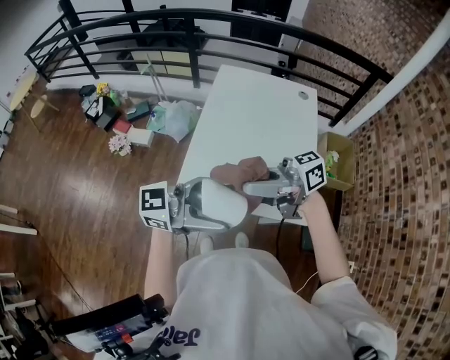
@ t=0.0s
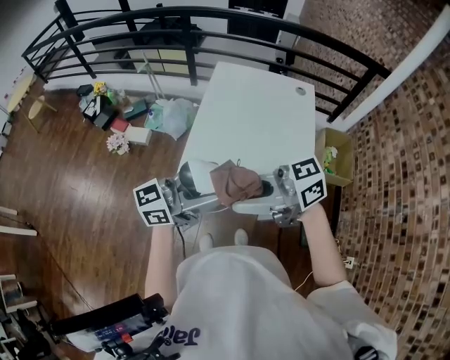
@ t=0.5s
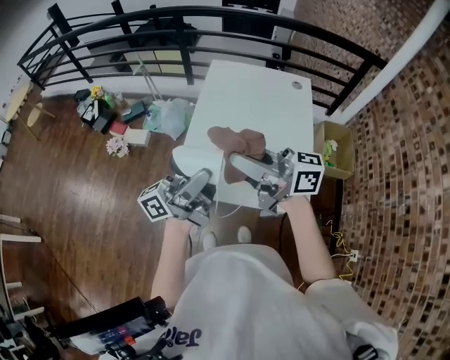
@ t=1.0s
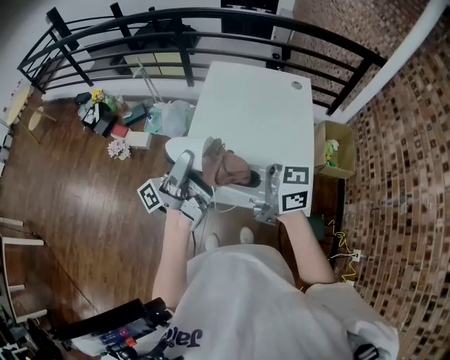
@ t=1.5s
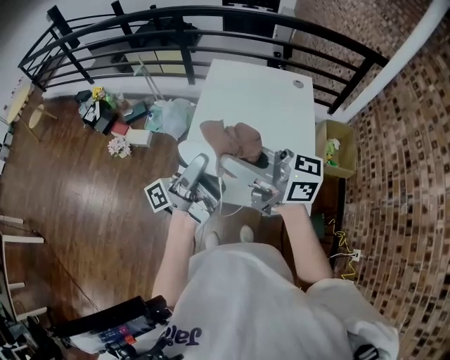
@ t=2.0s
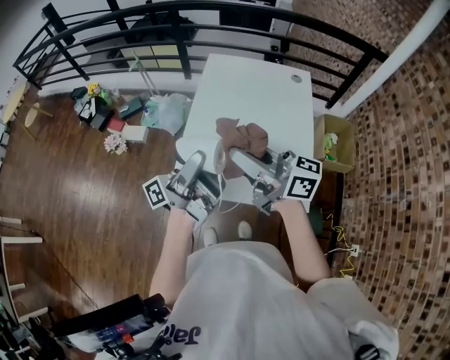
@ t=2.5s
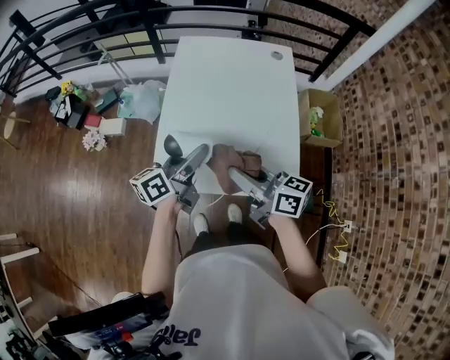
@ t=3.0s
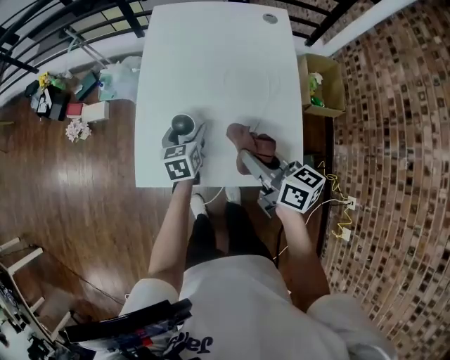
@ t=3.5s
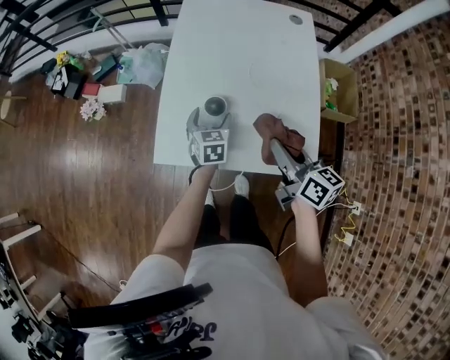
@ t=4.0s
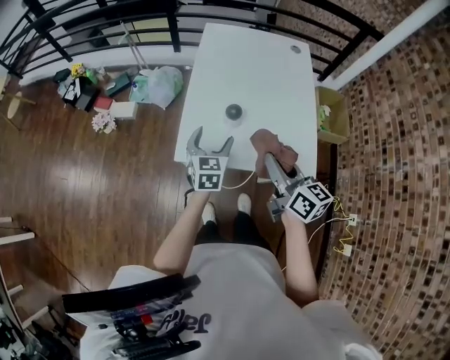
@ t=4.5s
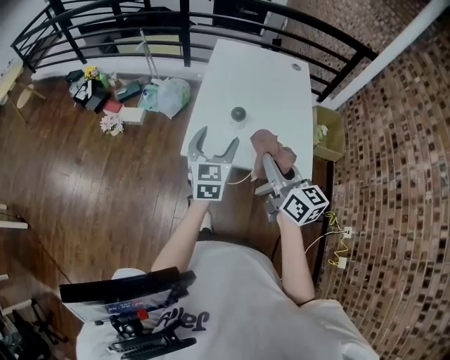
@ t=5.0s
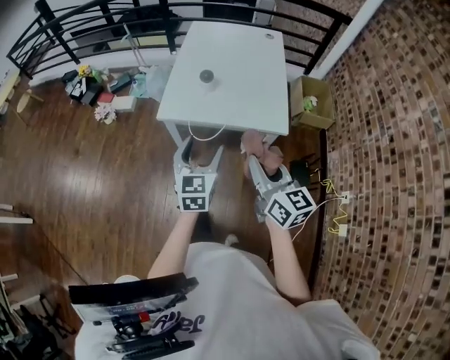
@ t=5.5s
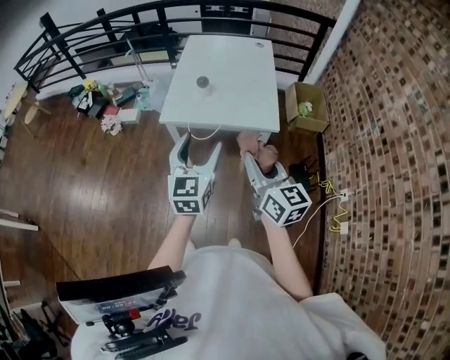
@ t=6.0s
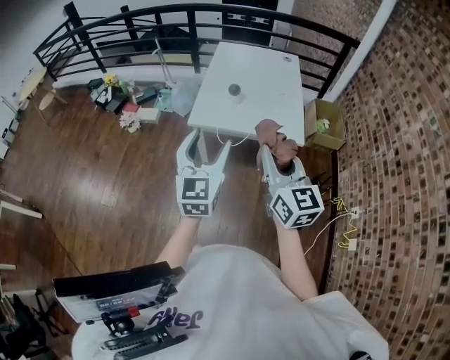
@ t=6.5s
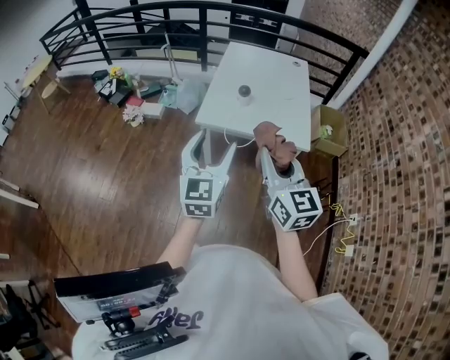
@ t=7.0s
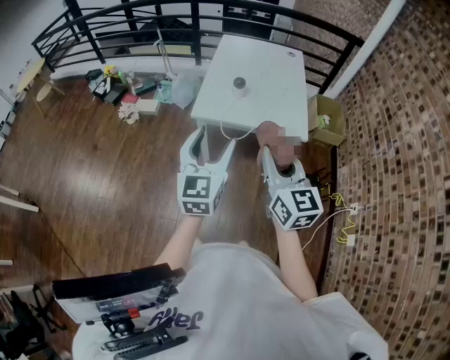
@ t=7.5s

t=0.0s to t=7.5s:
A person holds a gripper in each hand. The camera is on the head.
t=0.0s to t=2.0s: The left gripper ends up roughly 15 cm from where it was, and swivels roughly 70 degrees, while the right gripper goes approximately 5 cm upward, and turns by about 40 degrees.
t=2.0s to t=4.0s: The left gripper shifts roughly 35 cm downward, and angles its fingers downward, by roughly 70 degrees; the right gripper heads downward and to the right, covering about 30 cm, and rotates some 50 degrees.
t=4.0s to t=5.5s: The left gripper shifts roughly 40 cm backward and upward, and changes its angle by roughly 20 degrees. The right gripper shifts some 30 cm backward, and swivels some 20 degrees.
t=5.5s to t=7.5s: Both grippers move upward, to the left and backward, about 15 cm.

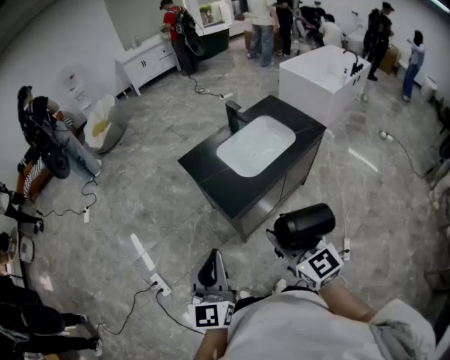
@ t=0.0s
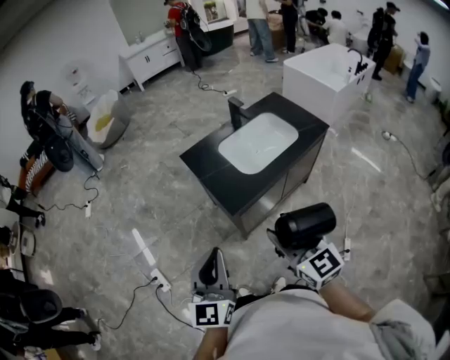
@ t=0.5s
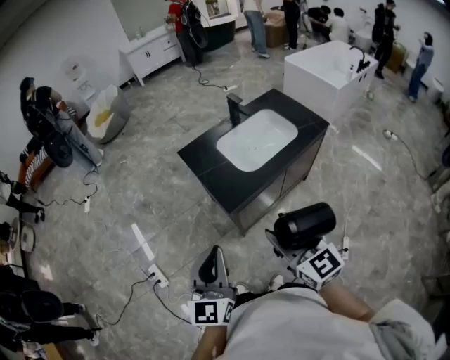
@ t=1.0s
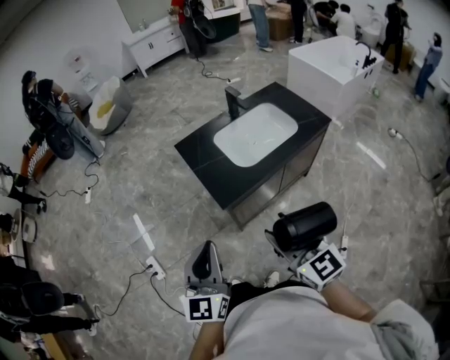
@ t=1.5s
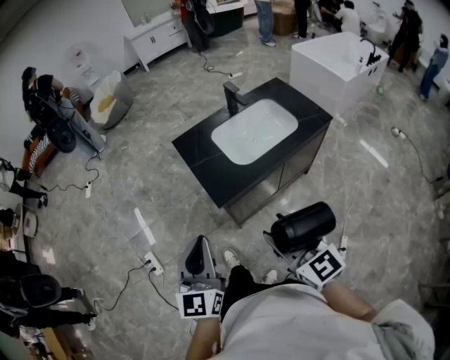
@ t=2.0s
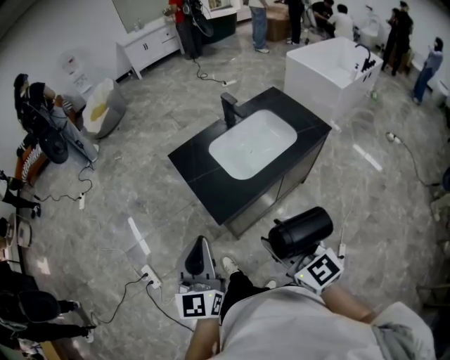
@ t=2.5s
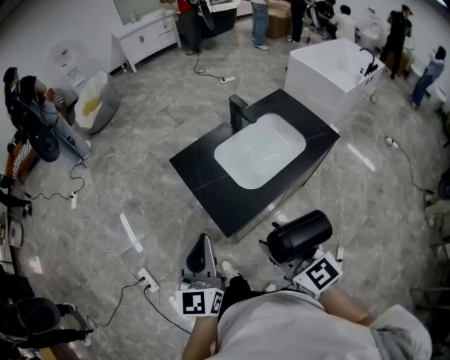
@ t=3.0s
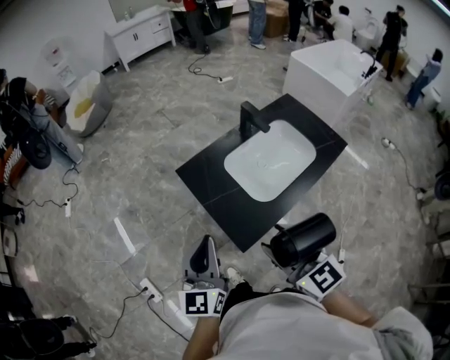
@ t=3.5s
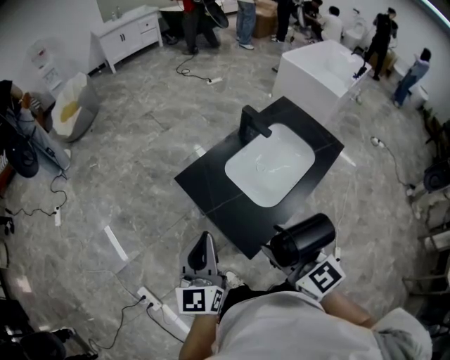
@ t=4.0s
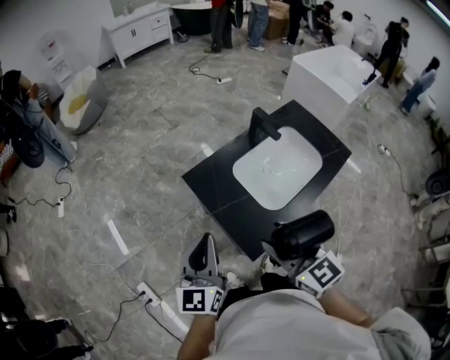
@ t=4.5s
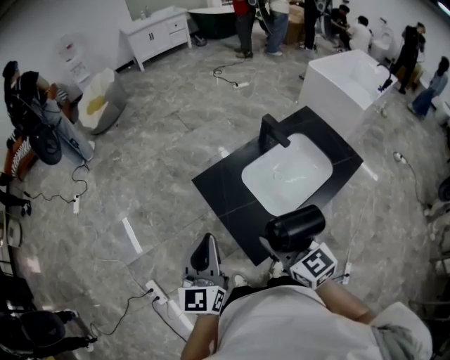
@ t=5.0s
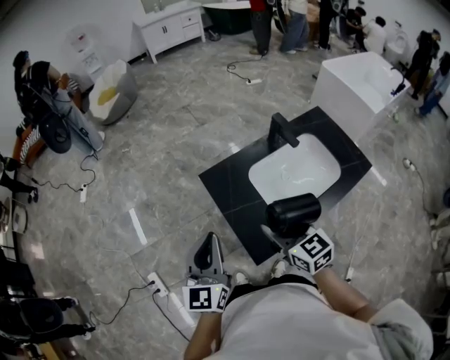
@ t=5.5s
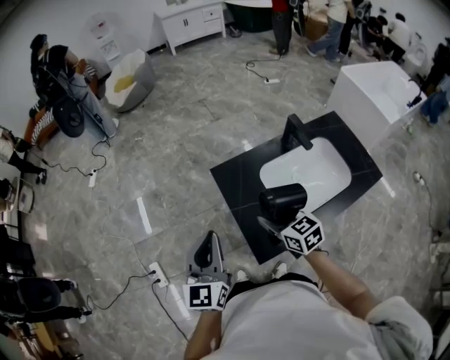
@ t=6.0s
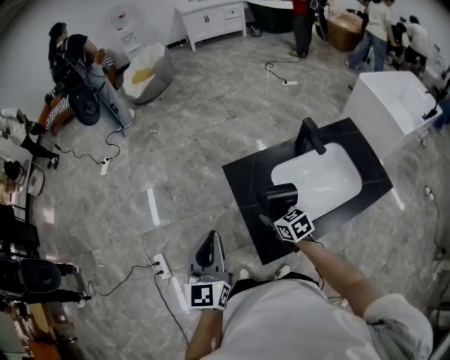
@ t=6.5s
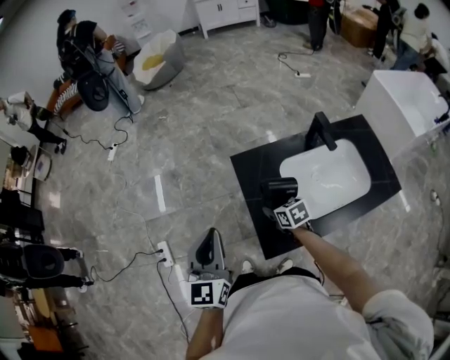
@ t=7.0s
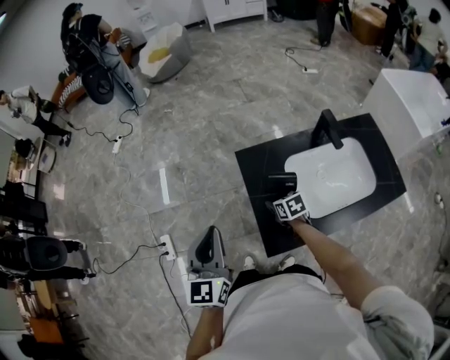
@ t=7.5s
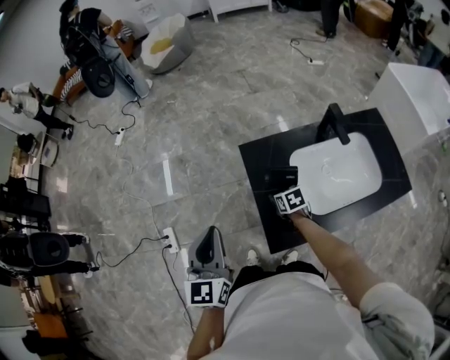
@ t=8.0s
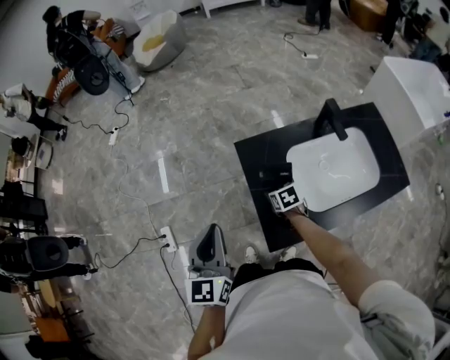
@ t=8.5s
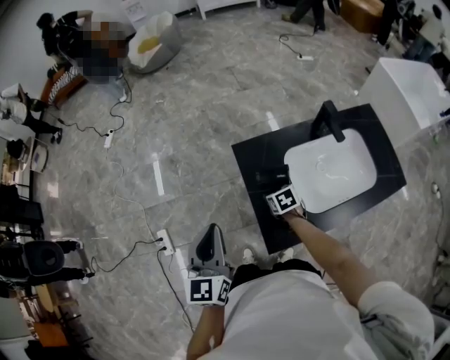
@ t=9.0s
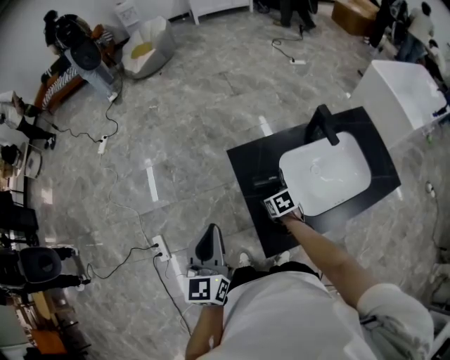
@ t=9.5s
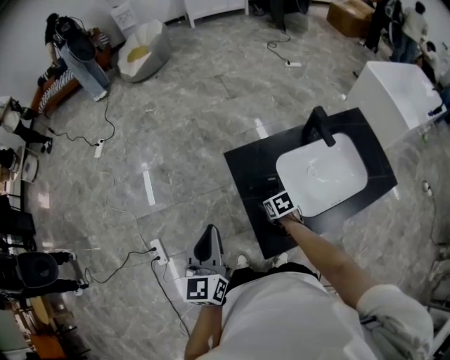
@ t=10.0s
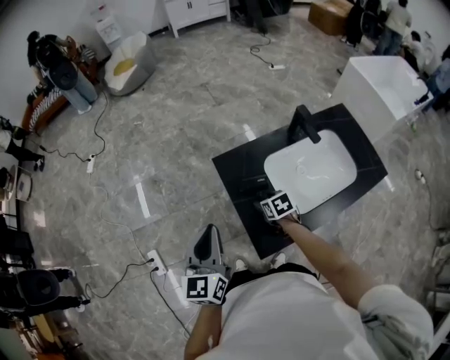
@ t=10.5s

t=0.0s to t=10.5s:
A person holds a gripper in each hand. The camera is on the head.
t=0.0s to t=2.0s: The right gripper goes about 5 cm to the right. The left gripper shifts by about 5 cm.
t=2.0s to t=4.0s: The left gripper heads forward, covering about 30 cm; the right gripper heads forward and to the left, covering about 25 cm.
t=4.0s to t=6.5s: The left gripper swivels approximately 20 degrees, while the right gripper travels downward and forward by about 25 cm, and rotates roughly 40 degrees.
t=6.5s to t=8.5s: The right gripper goes some 10 cm downward.
t=8.5s to t=10.5s: The grippers stay close to where they were, moving slightly.

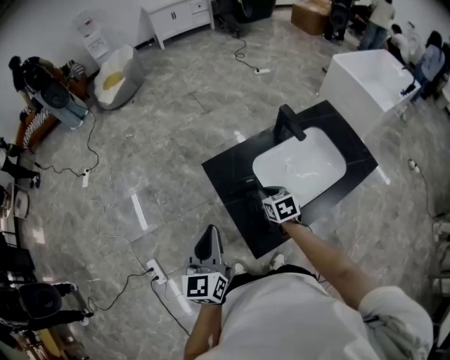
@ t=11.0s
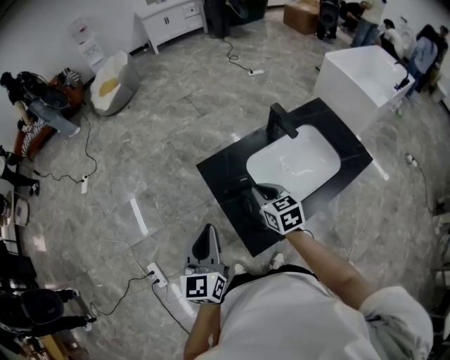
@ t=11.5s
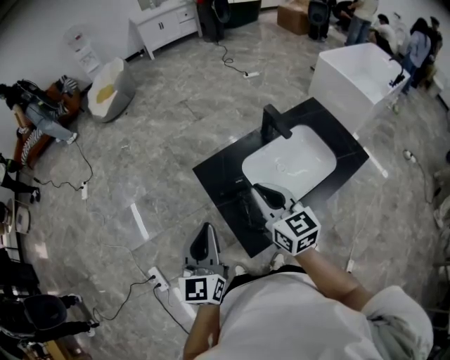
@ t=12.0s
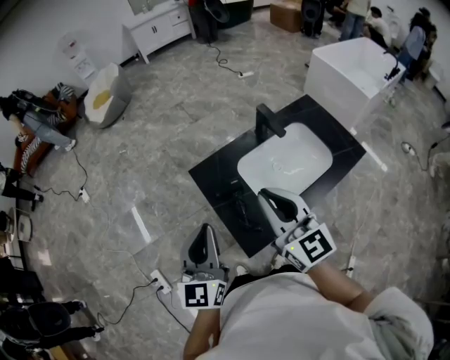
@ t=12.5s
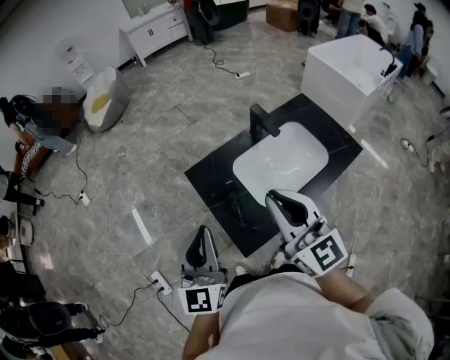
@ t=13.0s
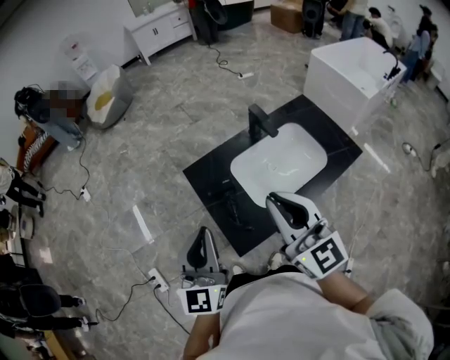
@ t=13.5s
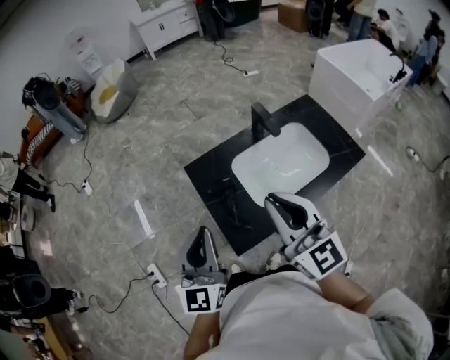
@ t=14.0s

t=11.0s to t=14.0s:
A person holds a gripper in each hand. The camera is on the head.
t=11.0s to t=12.5s: The right gripper goes about 30 cm upward, and angles its fingers upward, by roughly 50 degrees. The left gripper is displaced upward by roughly 10 cm.
t=12.5s to t=14.0s: The right gripper shifts by about 5 cm.

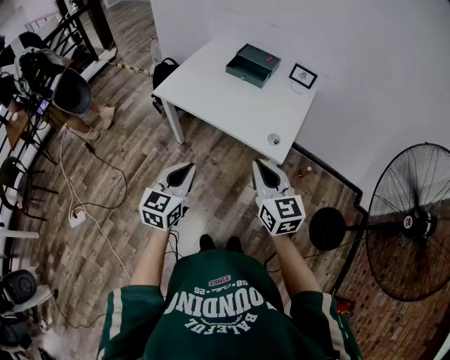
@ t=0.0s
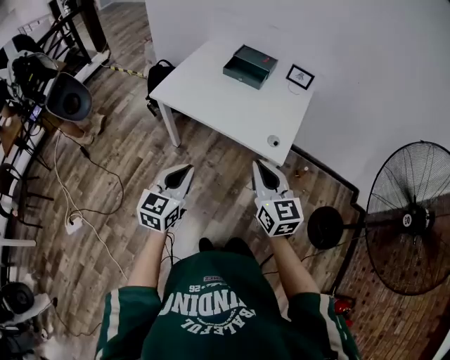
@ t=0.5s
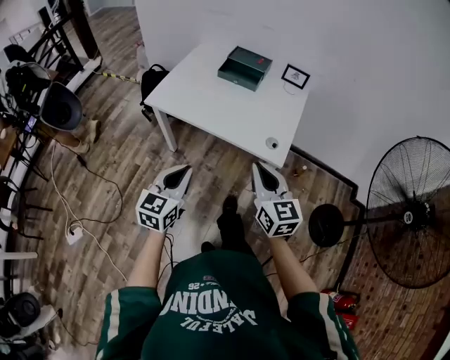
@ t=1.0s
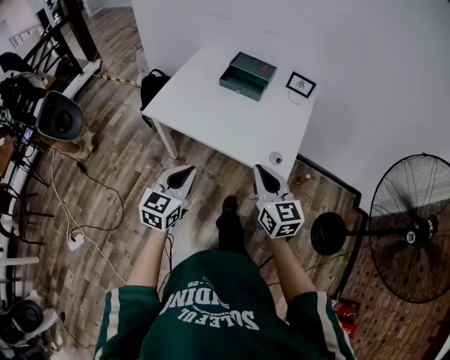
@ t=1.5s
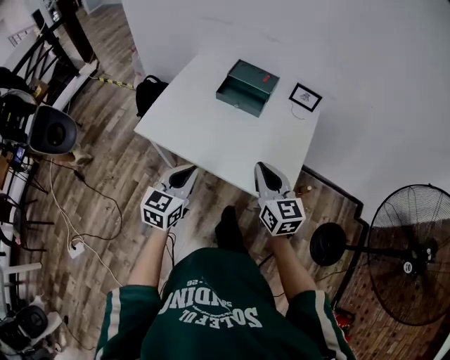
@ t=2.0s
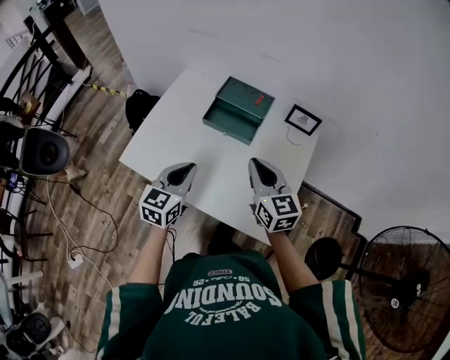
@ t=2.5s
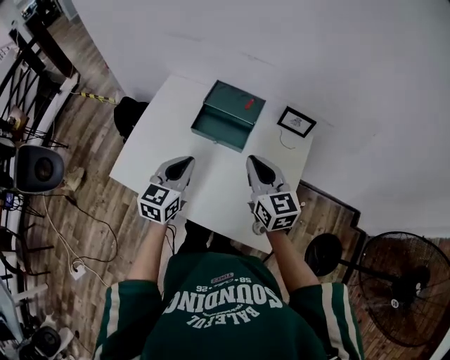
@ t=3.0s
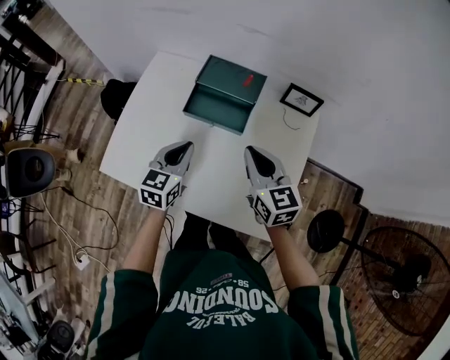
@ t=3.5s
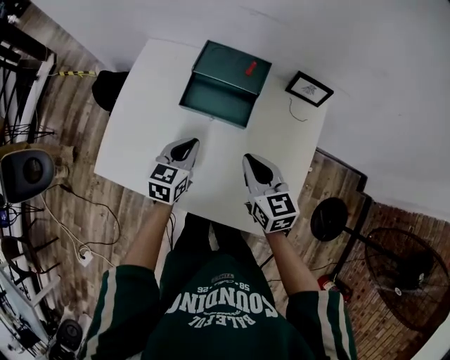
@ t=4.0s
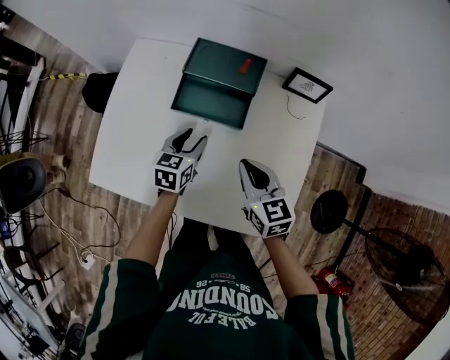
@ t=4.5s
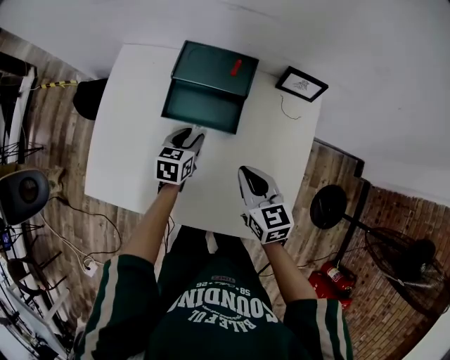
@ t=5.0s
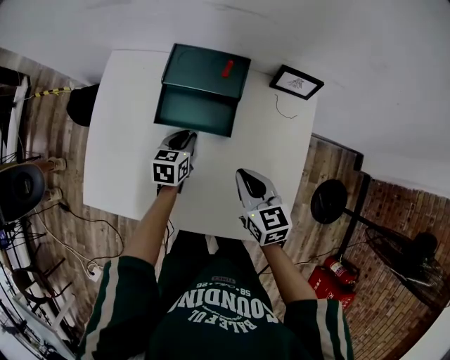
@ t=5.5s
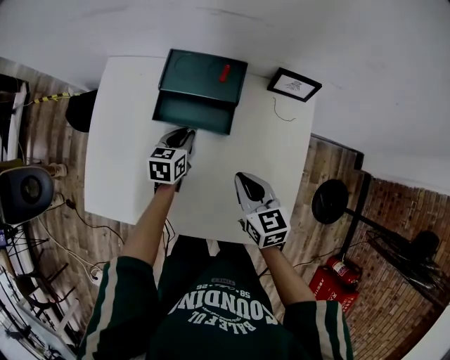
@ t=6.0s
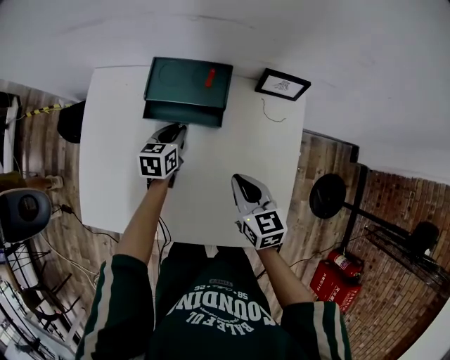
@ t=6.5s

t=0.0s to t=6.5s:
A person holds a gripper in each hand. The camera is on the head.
t=0.0s to t=2.0s: Both grippers move forward, about 25 cm.
t=2.0s to t=4.5s: The grippers both shift forward and downward by about 30 cm. The left gripper swivels approximately 20 degrees, and opens.
t=4.5s to t=6.5s: The right gripper ends up roughly 5 cm from where it was. The left gripper shifts about 10 cm forward and downward.
